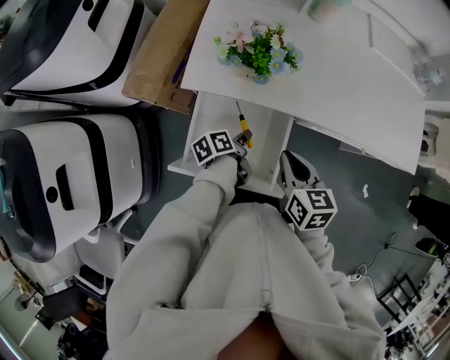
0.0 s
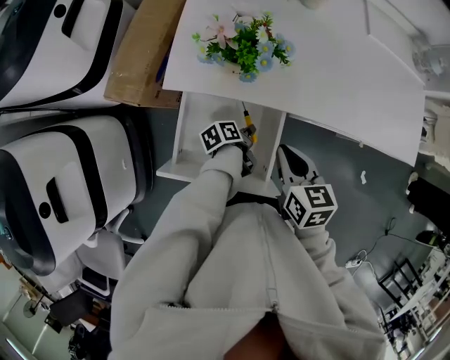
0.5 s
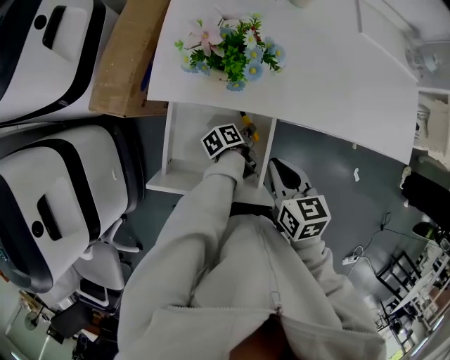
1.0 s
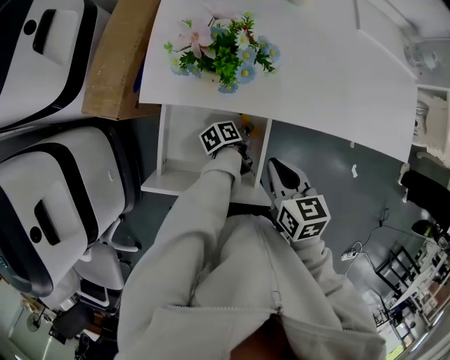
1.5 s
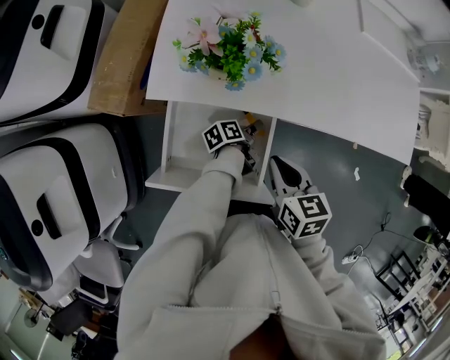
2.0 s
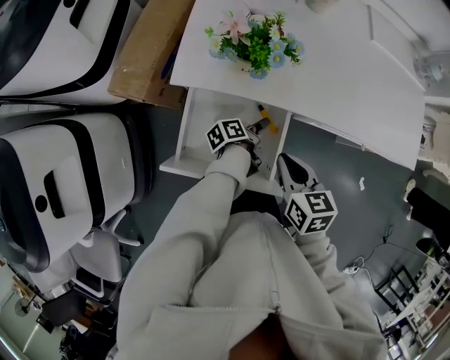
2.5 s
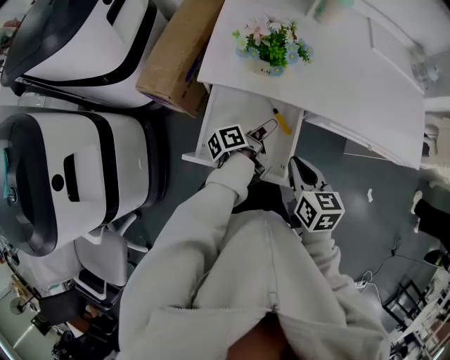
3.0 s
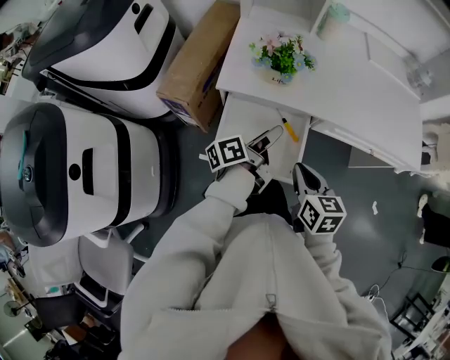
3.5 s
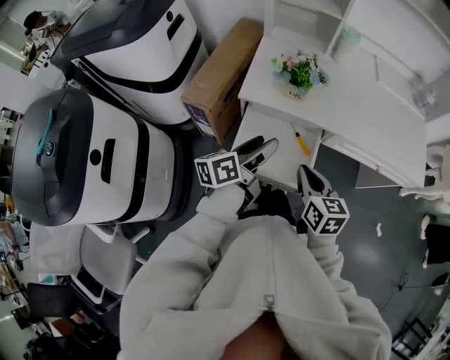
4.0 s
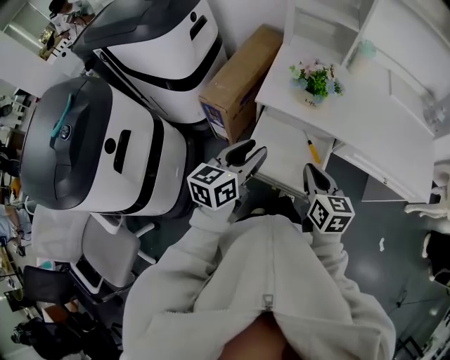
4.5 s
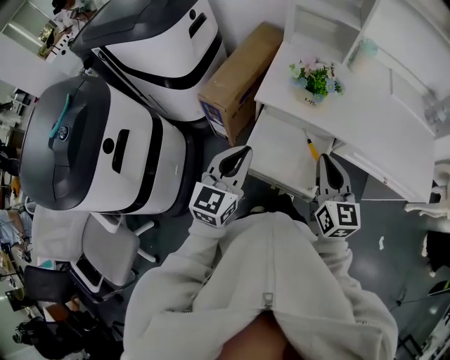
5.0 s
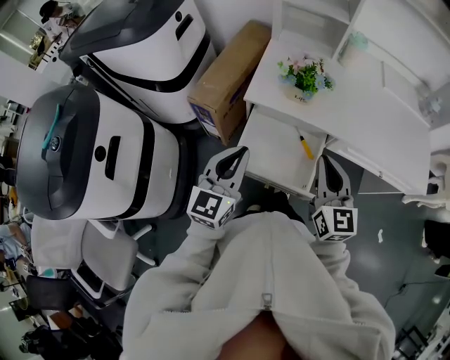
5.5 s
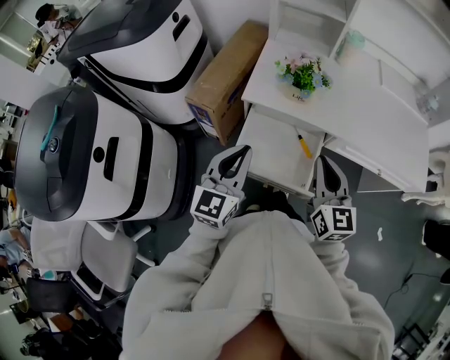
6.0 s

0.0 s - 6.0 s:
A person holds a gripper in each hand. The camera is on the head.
0.0 s - 2.0 s: The left gripper moves to the right, downward and forward, some 15 cm, and opens up.
2.0 s - 4.0 s: The right gripper goes about 15 cm backward, upward and to the left. Meanwhile the left gripper heads upward and to the left, covering about 35 cm, and turns by approximately 50 degrees.
4.0 s - 6.0 s: Both grippers travel together upward, approximately 5 cm. The right gripper turns by roughly 30 degrees; the left gripper rotates around the line of its fingers by approximately 50 degrees, clockwise from behind, and closes.

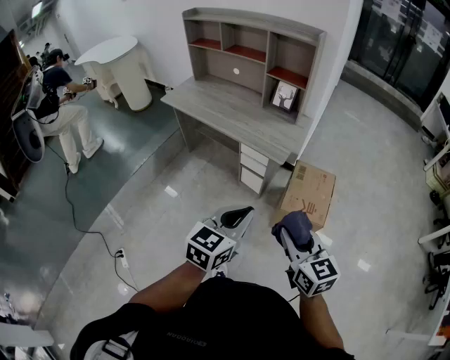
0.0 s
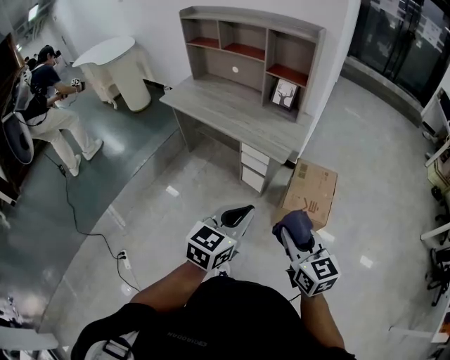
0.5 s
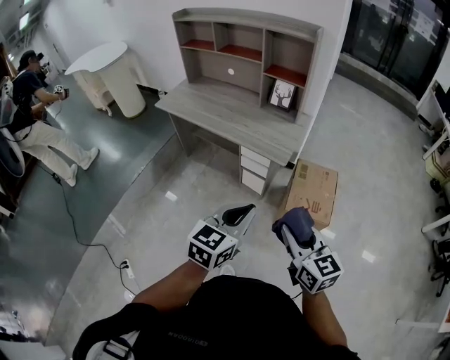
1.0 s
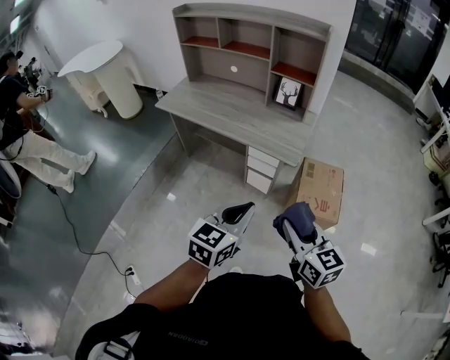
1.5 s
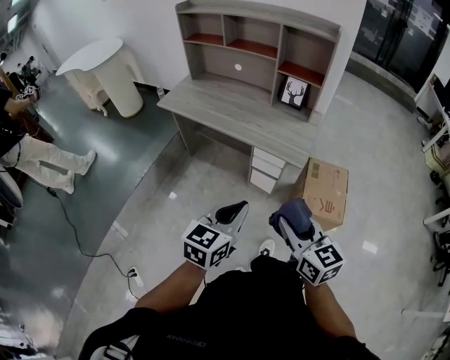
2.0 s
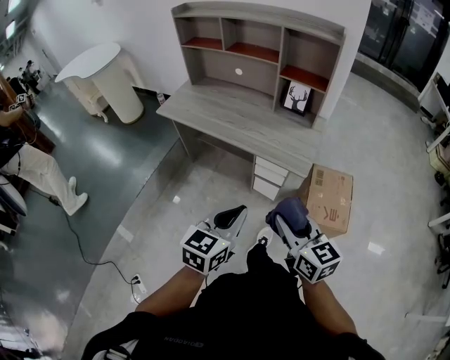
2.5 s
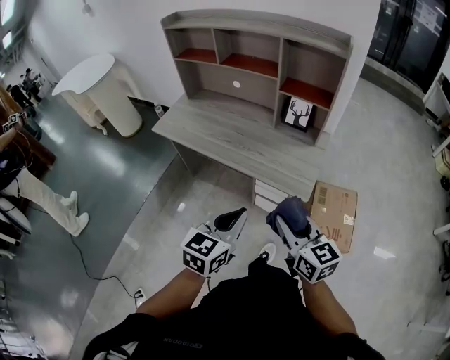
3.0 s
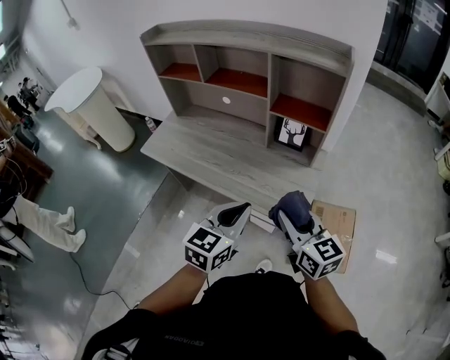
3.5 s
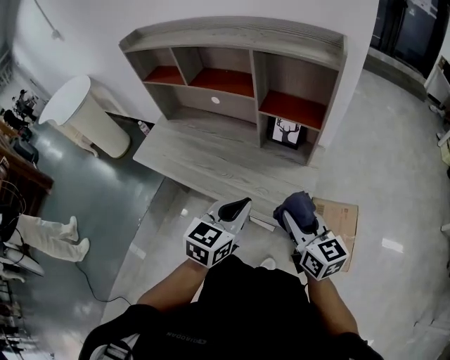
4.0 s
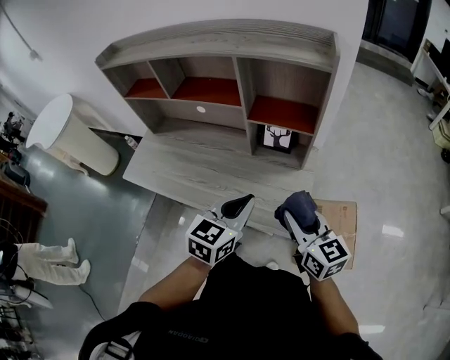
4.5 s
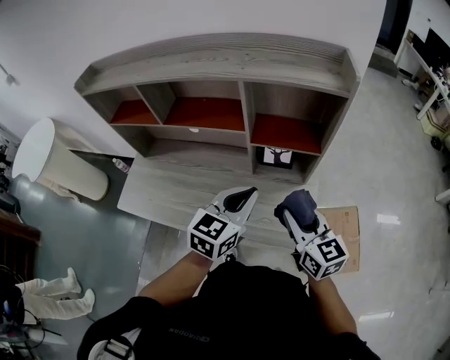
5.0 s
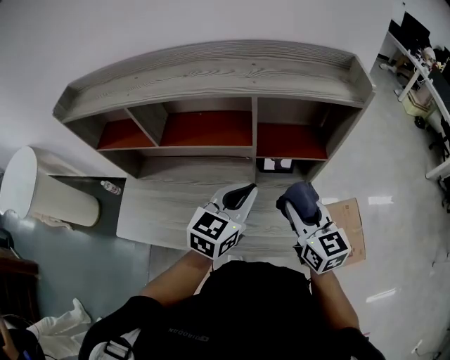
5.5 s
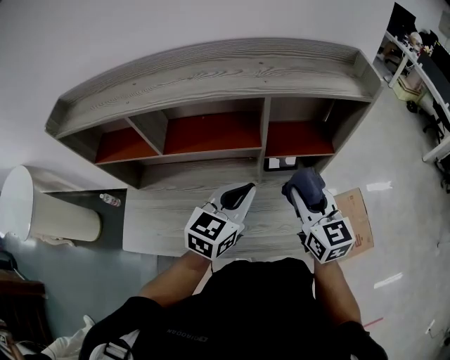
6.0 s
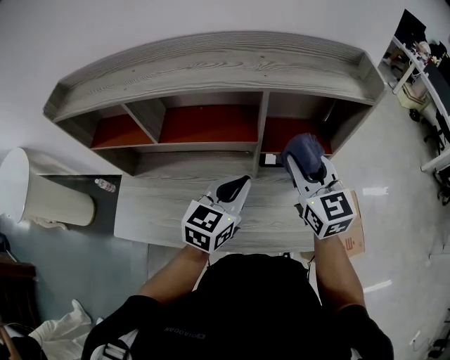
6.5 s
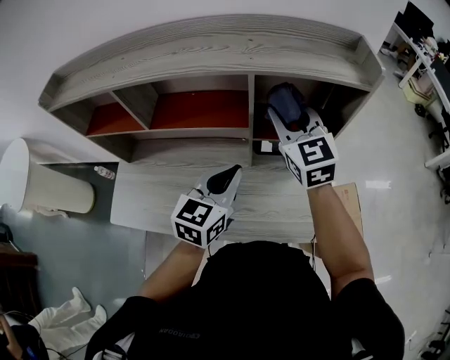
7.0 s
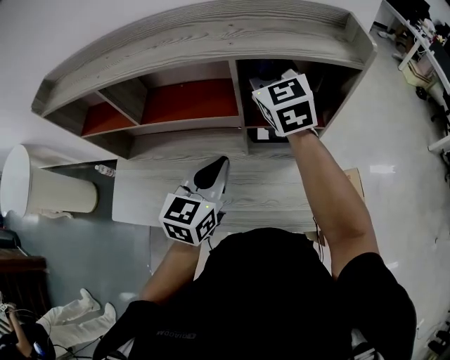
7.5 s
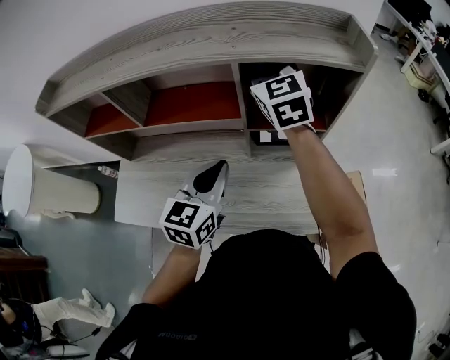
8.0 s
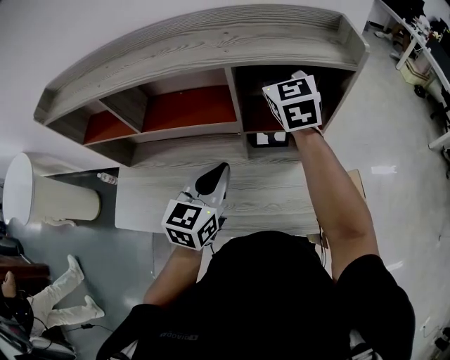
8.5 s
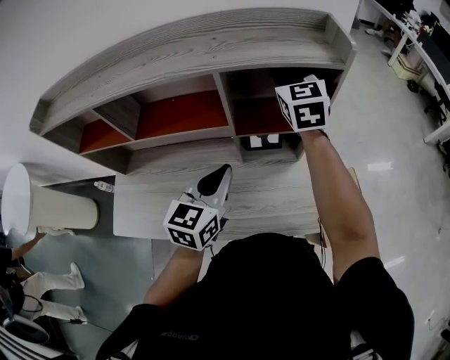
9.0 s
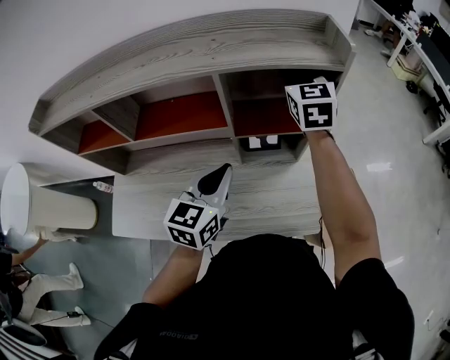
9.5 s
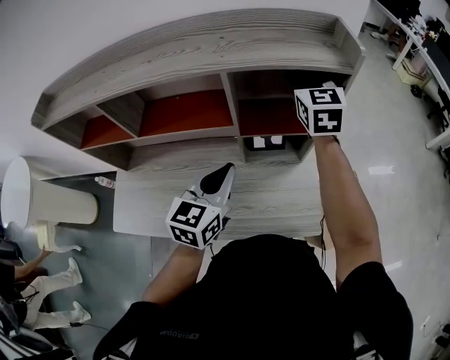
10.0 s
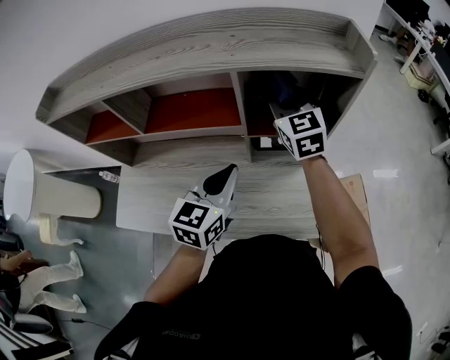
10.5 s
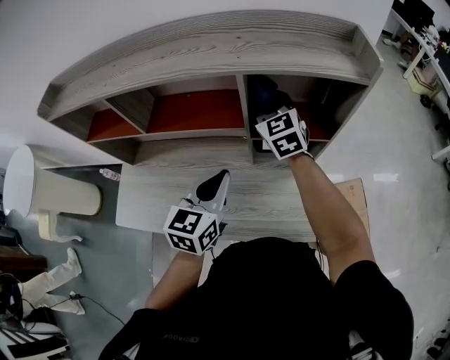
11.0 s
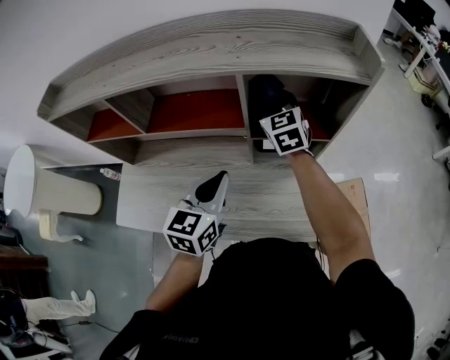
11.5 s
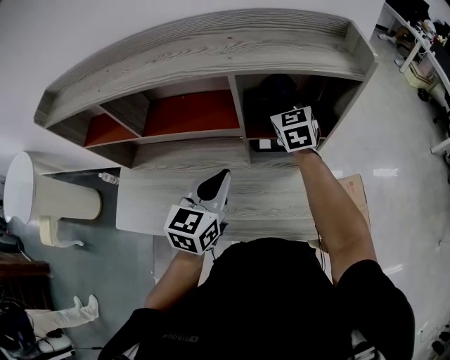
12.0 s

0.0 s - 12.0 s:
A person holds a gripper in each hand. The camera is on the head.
0.0 s - 2.0 s: Both grippers move to the left and forward, roughly 20 cm.
2.0 s - 4.0 s: The grippers both shift forward by about 35 cm.
4.0 s - 6.0 s: The left gripper ends up approximately 25 cm from where it was, and changes its angle by approximately 30 degrees, while the right gripper moves approximately 25 cm, and turns by about 30 degrees.
6.0 s - 8.0 s: The right gripper moves forward and upward, approximately 25 cm, and rotates some 20 degrees.
8.0 s - 10.0 s: The right gripper heads to the right, covering roughly 15 cm.
10.0 s - 12.0 s: The right gripper is displaced downward and to the left by about 15 cm.

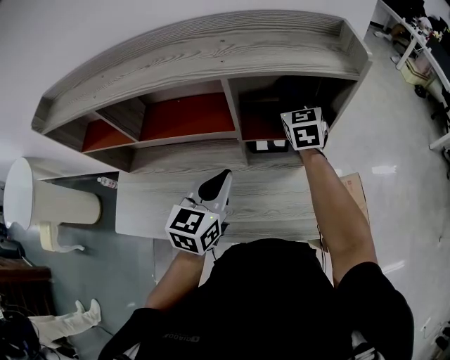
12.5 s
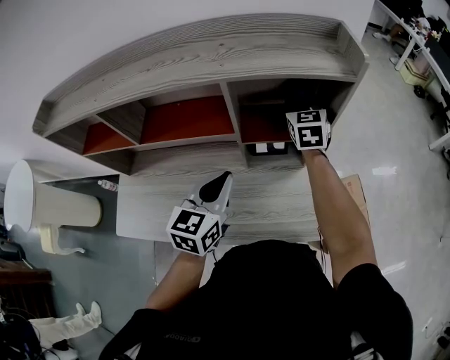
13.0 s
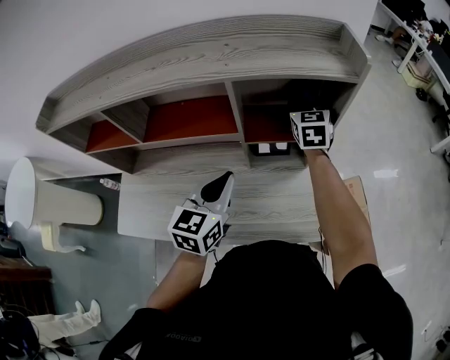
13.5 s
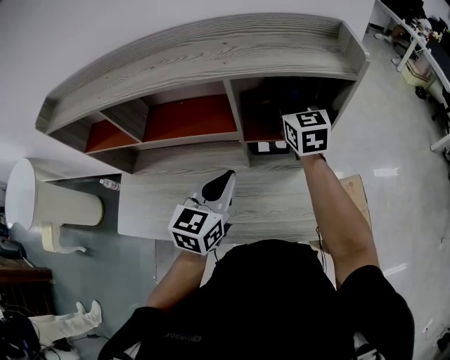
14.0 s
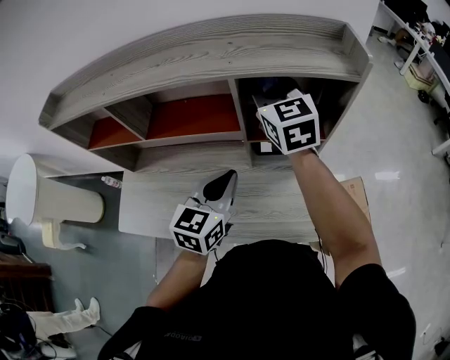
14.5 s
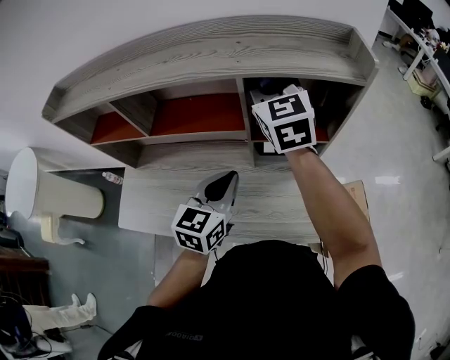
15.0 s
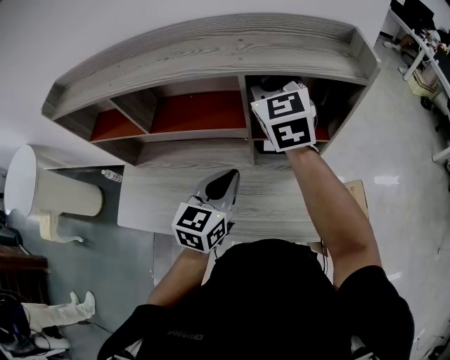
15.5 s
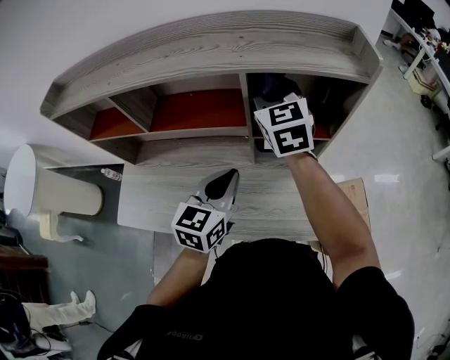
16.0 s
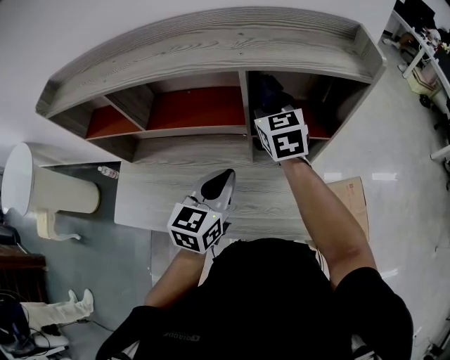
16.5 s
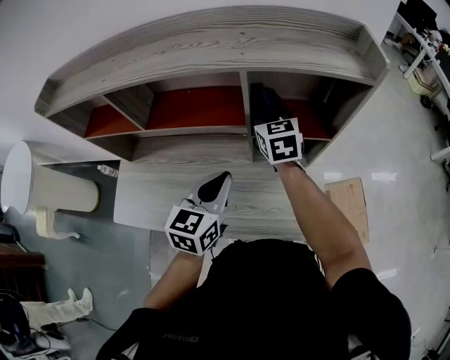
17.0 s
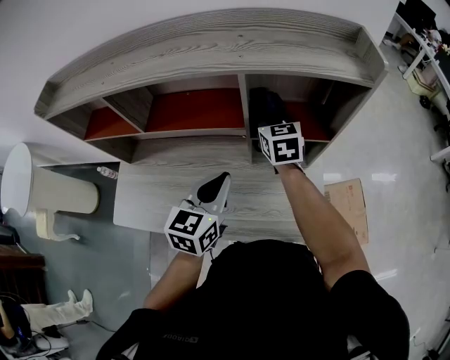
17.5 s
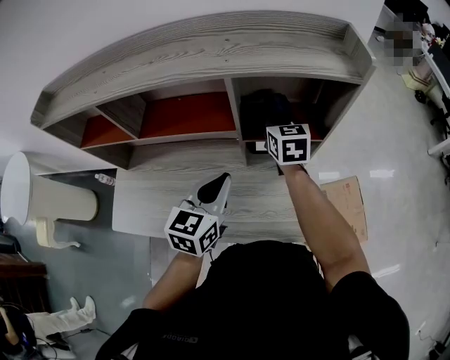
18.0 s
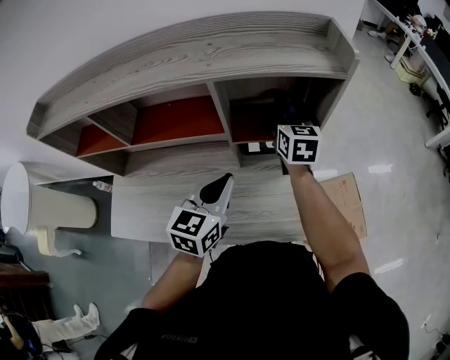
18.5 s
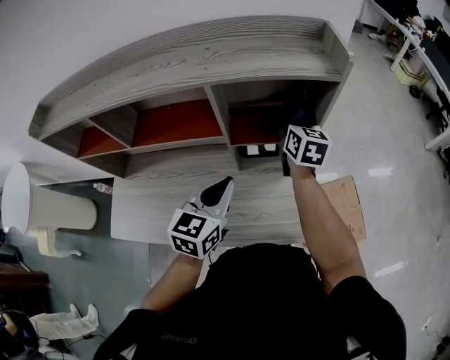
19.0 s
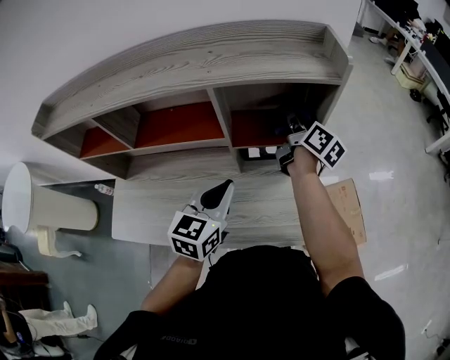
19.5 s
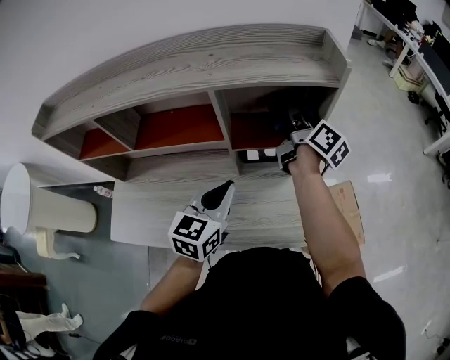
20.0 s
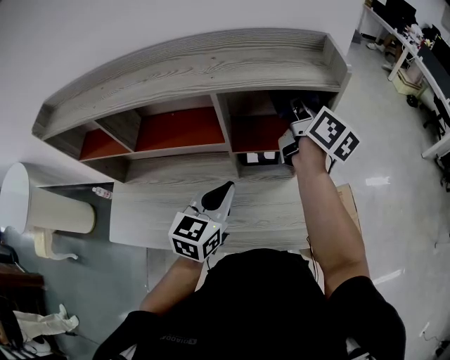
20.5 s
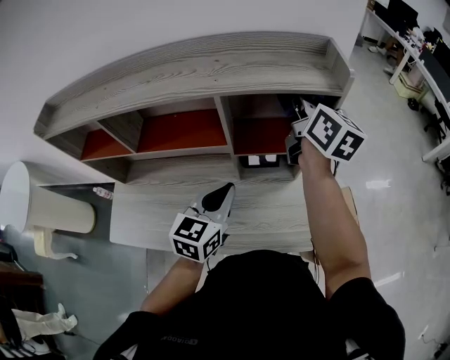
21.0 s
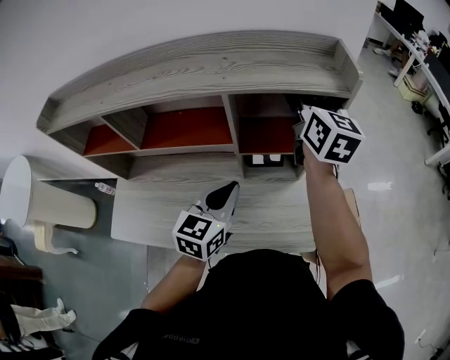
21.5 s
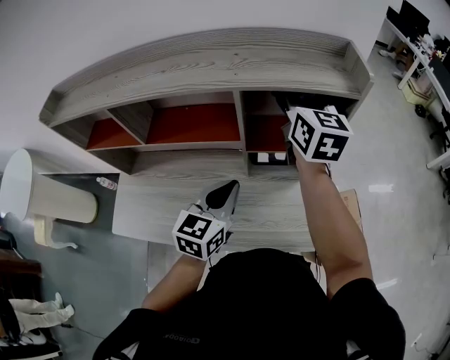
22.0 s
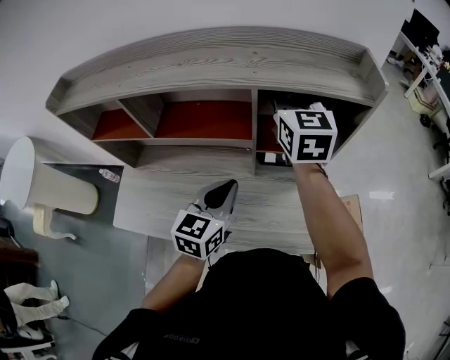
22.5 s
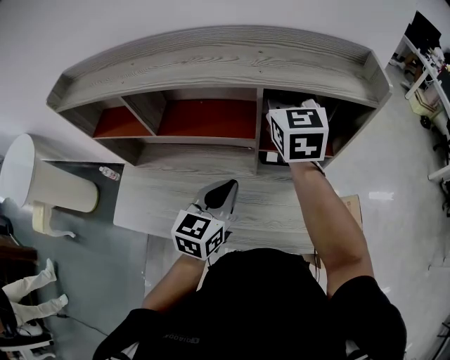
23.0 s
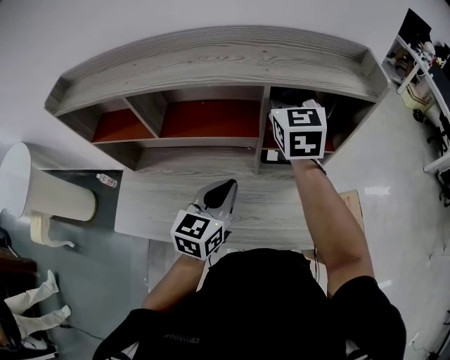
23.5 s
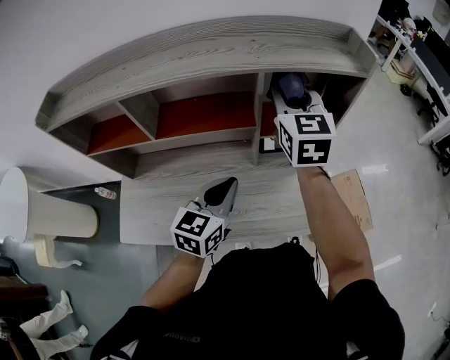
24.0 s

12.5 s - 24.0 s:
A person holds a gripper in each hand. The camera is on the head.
12.5 s - 14.5 s: The right gripper shifts roughly 15 cm upward, to the left and backward.
14.5 s - 16.5 s: The right gripper moves downward, about 10 cm.
16.5 s - 18.5 s: The right gripper goes roughly 15 cm to the right and downward, and turns by some 20 degrees.
18.5 s - 20.0 s: The right gripper shifts about 5 cm upward, and twists roughly 50 degrees clockwise, seen from behind.
20.0 s - 22.0 s: The right gripper travels upward and to the left by approximately 15 cm, and rotates around the line of its fingers by about 50 degrees, counterclockwise from behind.
22.0 s - 24.0 s: The right gripper heads to the left and backward, covering about 10 cm; the left gripper heads to the left, covering some 5 cm.
